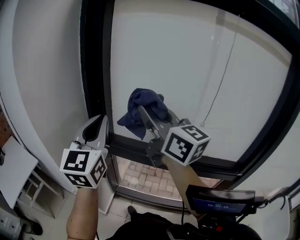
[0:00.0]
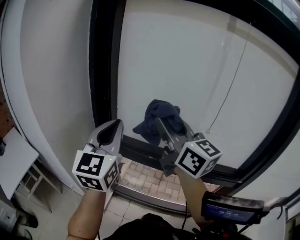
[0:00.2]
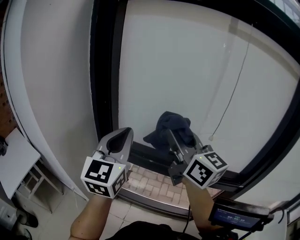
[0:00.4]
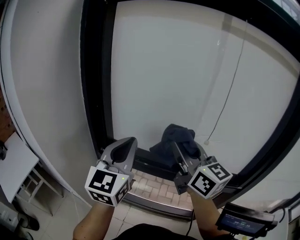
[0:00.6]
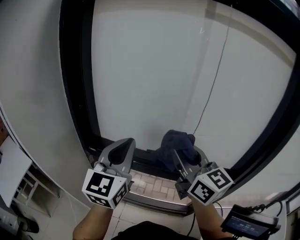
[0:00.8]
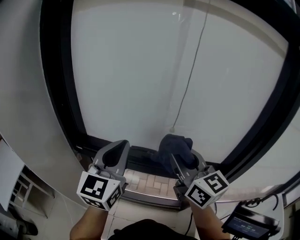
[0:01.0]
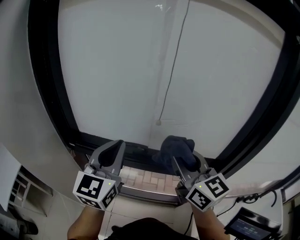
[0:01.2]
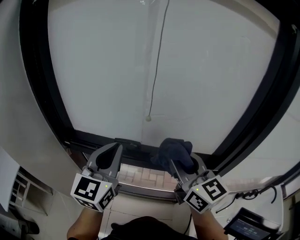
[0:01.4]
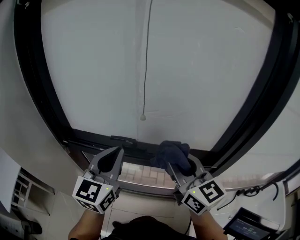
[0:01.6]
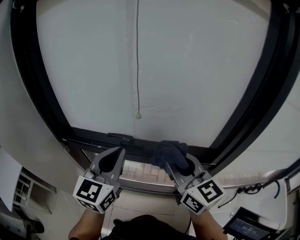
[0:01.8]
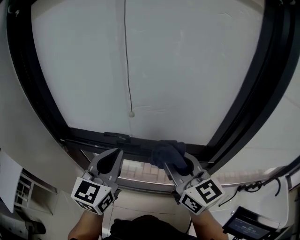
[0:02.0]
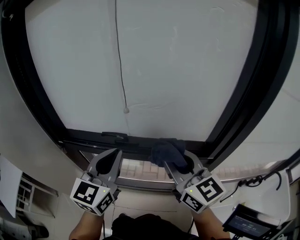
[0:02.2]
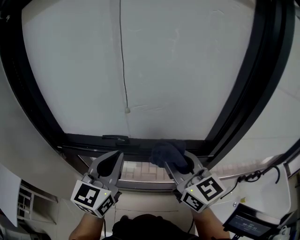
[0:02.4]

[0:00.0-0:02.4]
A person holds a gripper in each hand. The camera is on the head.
0:00.0 to 0:01.2: The left gripper shifts approximately 25 cm to the right. The right gripper shifts roughly 30 cm to the right and downward, and rotates roughly 20 degrees.
0:01.2 to 0:02.4: The two grippers go roughly 5 cm to the right.

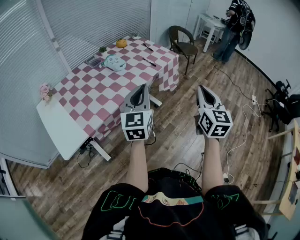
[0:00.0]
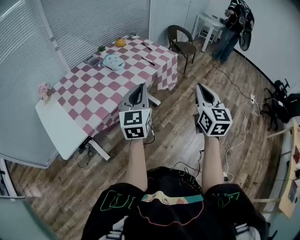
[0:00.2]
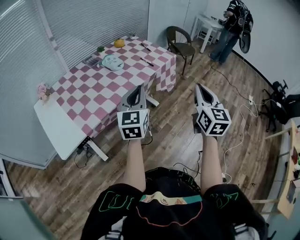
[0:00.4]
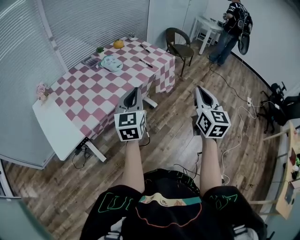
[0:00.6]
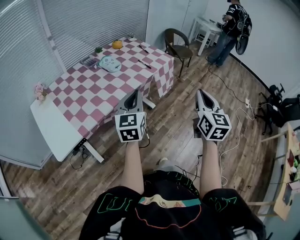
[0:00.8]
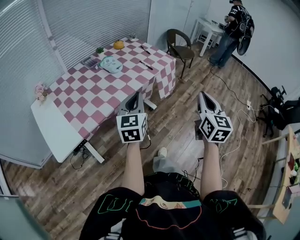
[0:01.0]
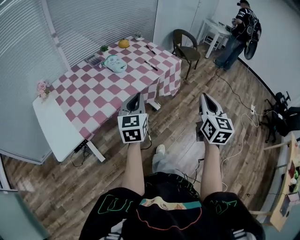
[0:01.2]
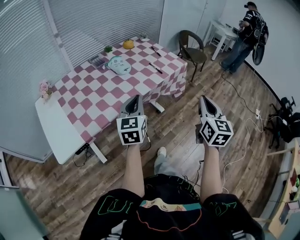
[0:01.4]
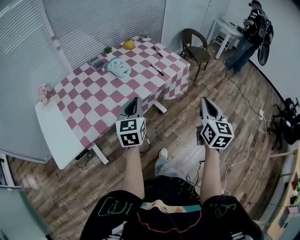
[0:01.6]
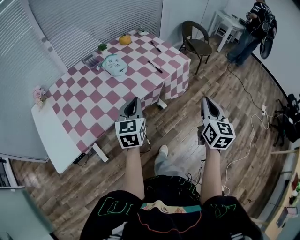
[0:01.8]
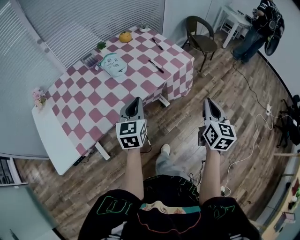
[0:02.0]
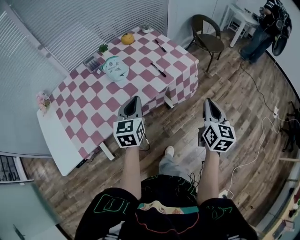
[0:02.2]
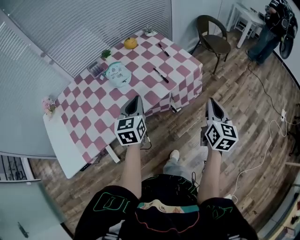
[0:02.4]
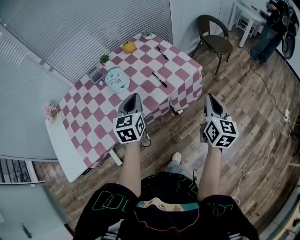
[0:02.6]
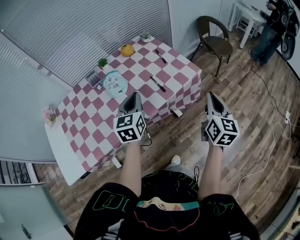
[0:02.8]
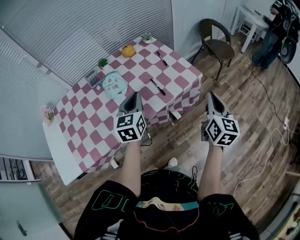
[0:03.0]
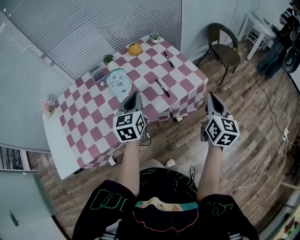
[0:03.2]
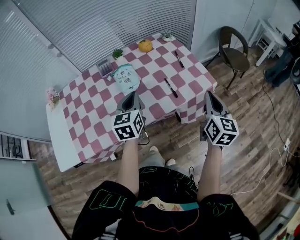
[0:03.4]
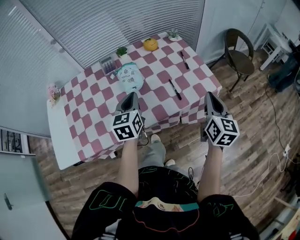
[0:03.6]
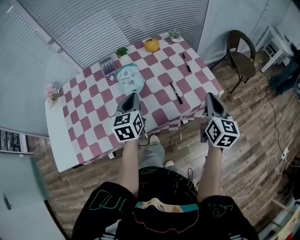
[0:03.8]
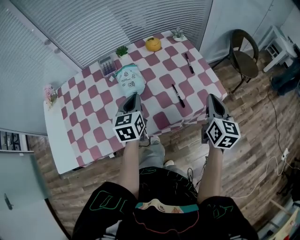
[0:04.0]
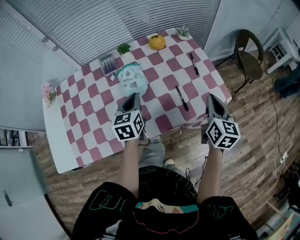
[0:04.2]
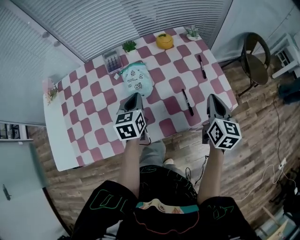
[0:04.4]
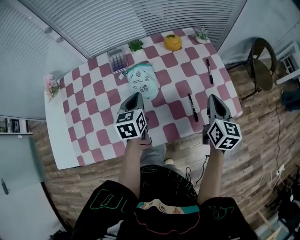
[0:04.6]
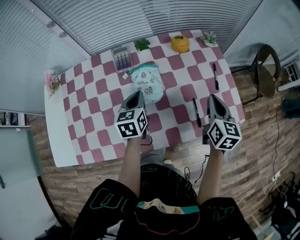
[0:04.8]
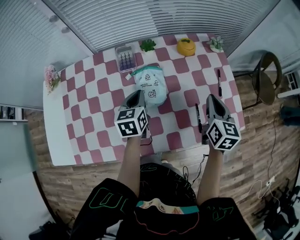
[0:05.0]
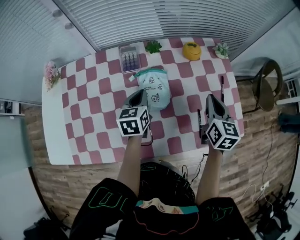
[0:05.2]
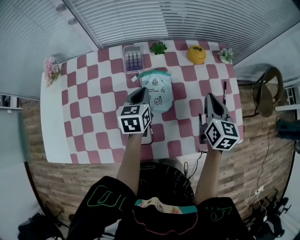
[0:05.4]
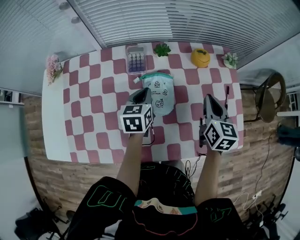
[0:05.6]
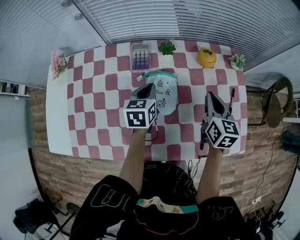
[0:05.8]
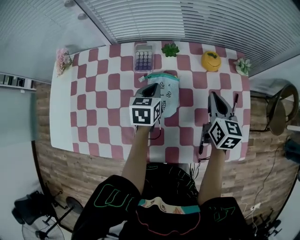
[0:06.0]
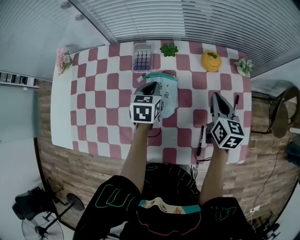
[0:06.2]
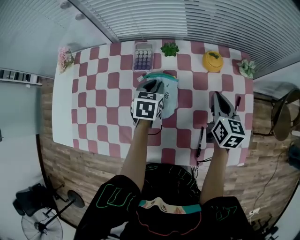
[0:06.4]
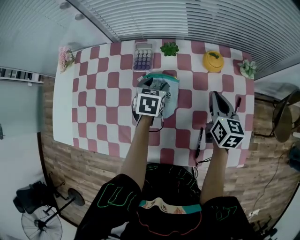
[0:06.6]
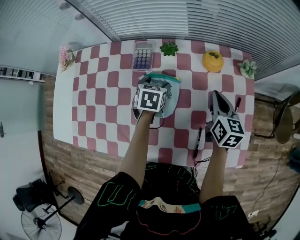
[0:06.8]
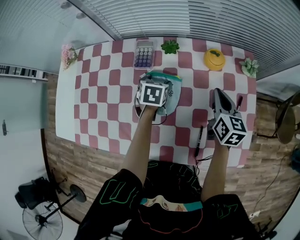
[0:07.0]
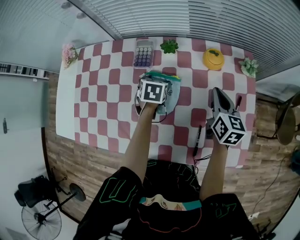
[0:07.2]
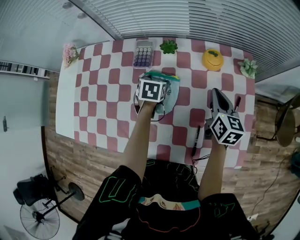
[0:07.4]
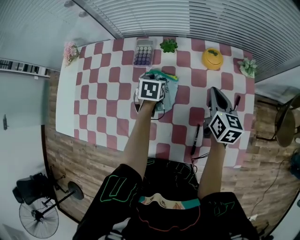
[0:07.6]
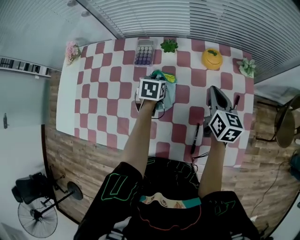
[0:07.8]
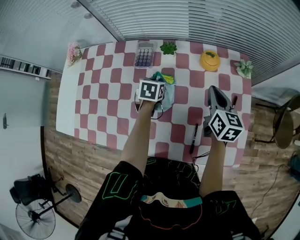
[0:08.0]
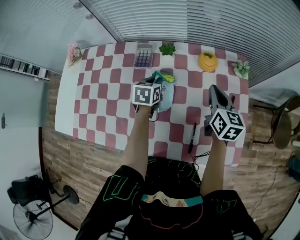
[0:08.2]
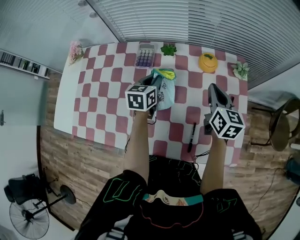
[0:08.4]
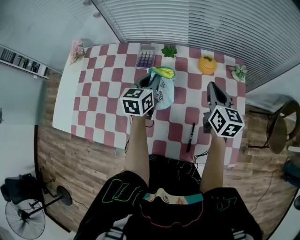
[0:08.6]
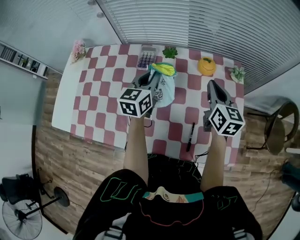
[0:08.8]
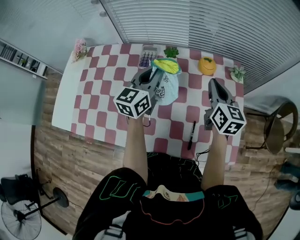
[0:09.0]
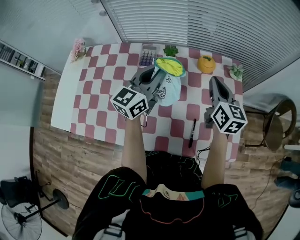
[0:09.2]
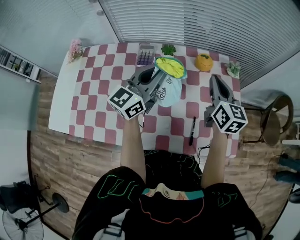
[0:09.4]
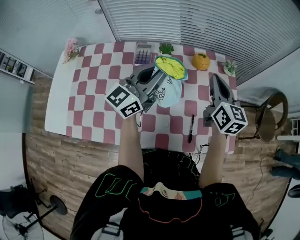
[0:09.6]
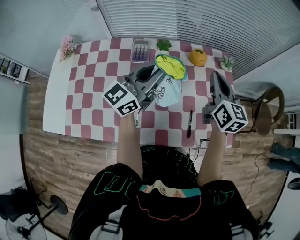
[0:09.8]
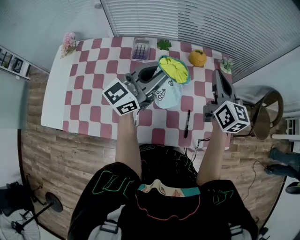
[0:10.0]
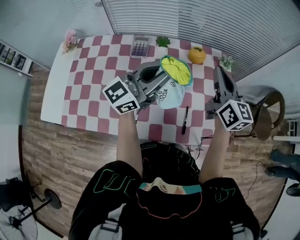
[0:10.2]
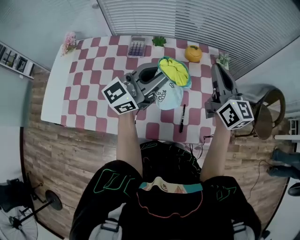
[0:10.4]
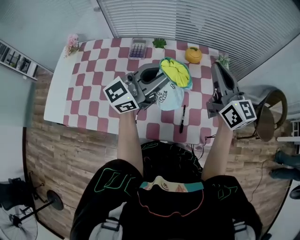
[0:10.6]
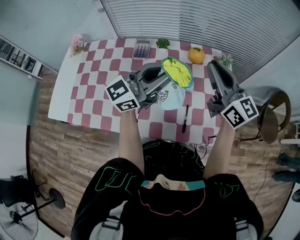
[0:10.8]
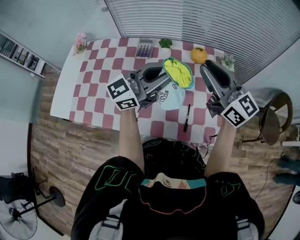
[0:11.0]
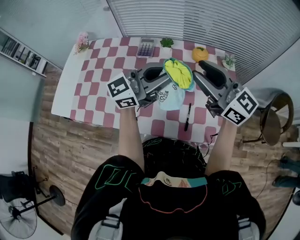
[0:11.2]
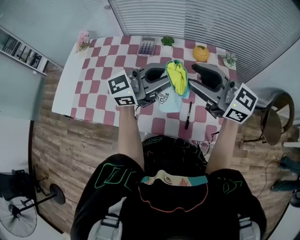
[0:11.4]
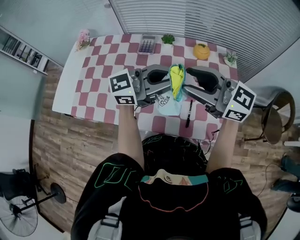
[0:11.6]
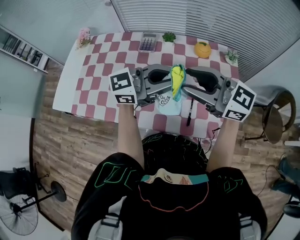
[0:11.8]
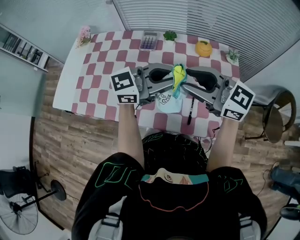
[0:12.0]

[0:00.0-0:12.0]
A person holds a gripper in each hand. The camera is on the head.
0:00.0 to 0:01.6: Both grippers move forward and downward, approximately 15 cm.
0:01.6 to 0:03.0: Both grippers move forward, roughly 25 cm.
0:03.0 to 0:04.4: The right gripper travels forward and to the left by roughly 25 cm, and rotates approximately 20 degrees. Meanwhile the left gripper is displaced to the left, forward and downward by some 20 cm, and rotates roughly 20 degrees.
0:04.4 to 0:06.0: The left gripper heads forward, covering about 15 cm. Meanwhile the right gripper moves forward and to the left, roughly 25 cm, and swivels roughly 30 degrees.
0:06.0 to 0:07.6: The left gripper is displaced downward by some 5 cm, and opens; the right gripper moves some 5 cm.
0:07.6 to 0:09.0: The left gripper is displaced upward by approximately 20 cm, angles its fingers upward, by about 50 degrees, and closes its fingers. Meanwhile the right gripper is displaced upward by roughly 10 cm.
0:09.0 to 0:10.4: The right gripper goes roughly 10 cm upward and backward, while the left gripper heads backward, to the right and upward, covering some 15 cm, and changes its angle by some 40 degrees.
0:10.4 to 0:12.0: The right gripper changes place by about 15 cm, swivels some 50 degrees, and opens its fingers, while the left gripper moves some 5 cm.

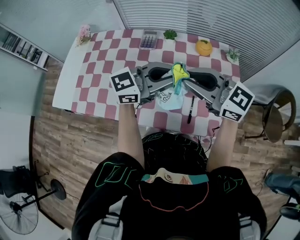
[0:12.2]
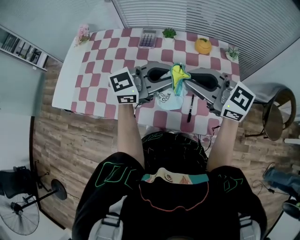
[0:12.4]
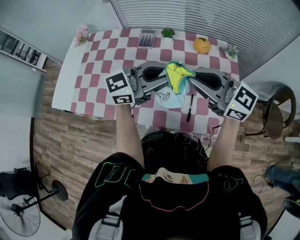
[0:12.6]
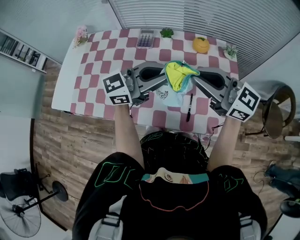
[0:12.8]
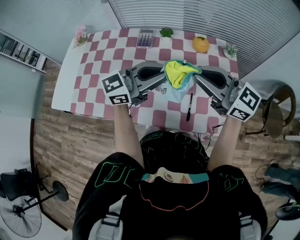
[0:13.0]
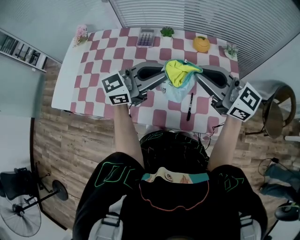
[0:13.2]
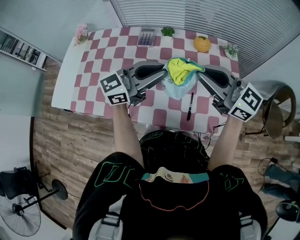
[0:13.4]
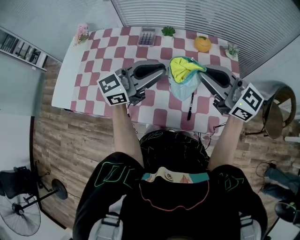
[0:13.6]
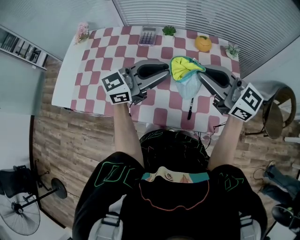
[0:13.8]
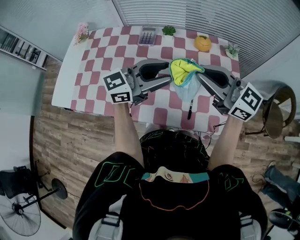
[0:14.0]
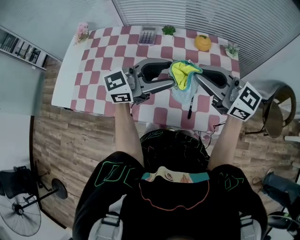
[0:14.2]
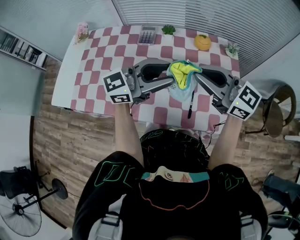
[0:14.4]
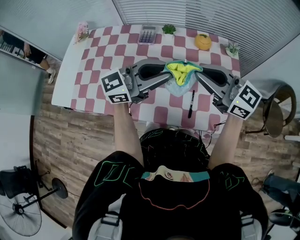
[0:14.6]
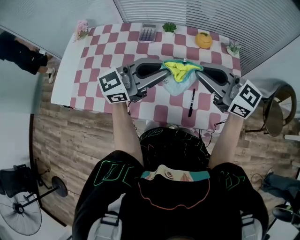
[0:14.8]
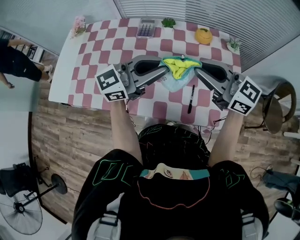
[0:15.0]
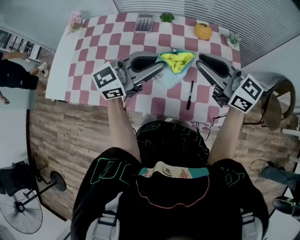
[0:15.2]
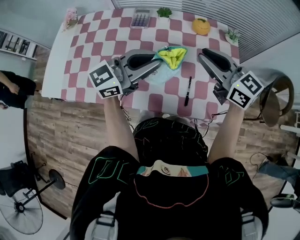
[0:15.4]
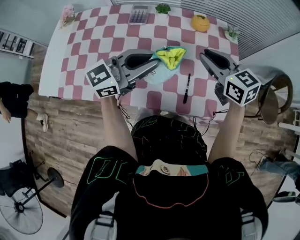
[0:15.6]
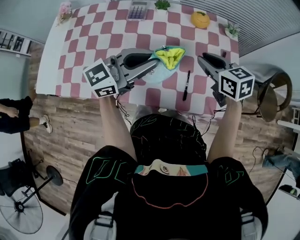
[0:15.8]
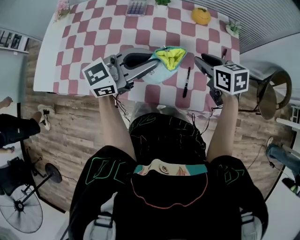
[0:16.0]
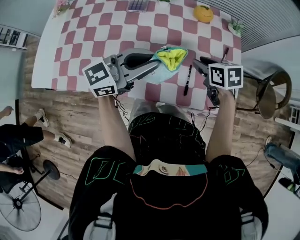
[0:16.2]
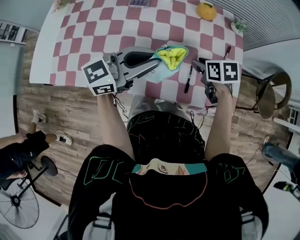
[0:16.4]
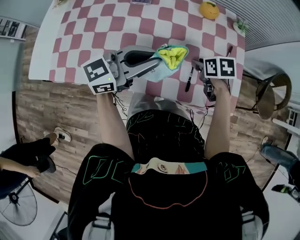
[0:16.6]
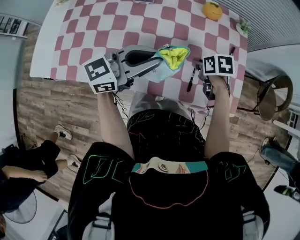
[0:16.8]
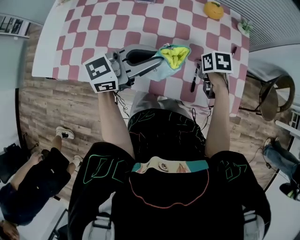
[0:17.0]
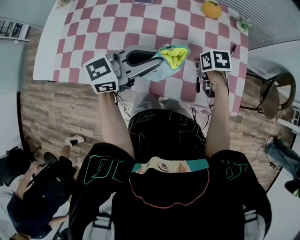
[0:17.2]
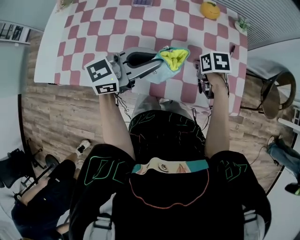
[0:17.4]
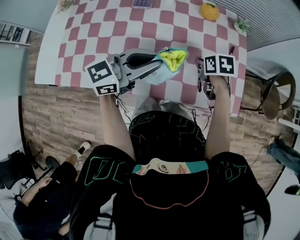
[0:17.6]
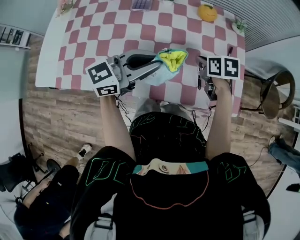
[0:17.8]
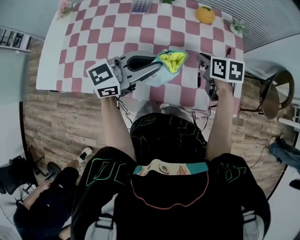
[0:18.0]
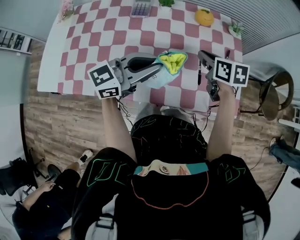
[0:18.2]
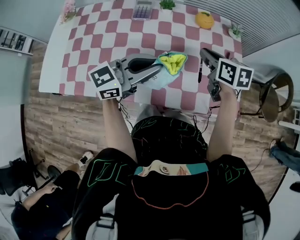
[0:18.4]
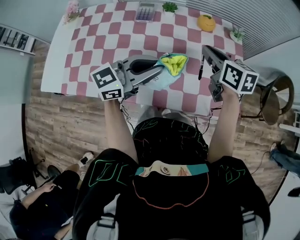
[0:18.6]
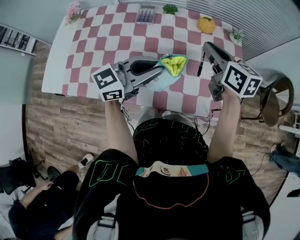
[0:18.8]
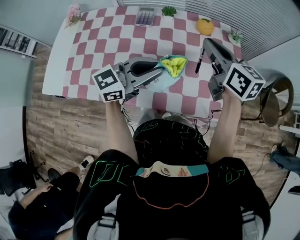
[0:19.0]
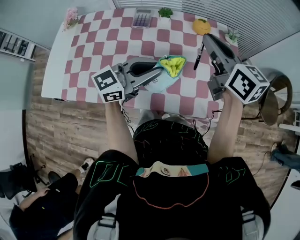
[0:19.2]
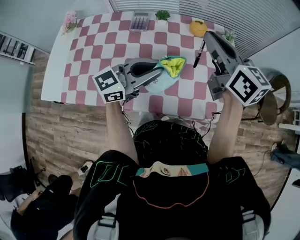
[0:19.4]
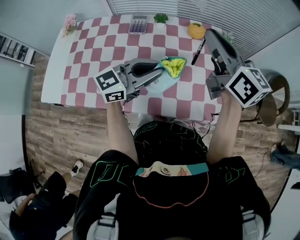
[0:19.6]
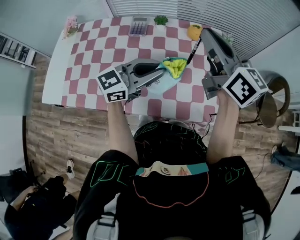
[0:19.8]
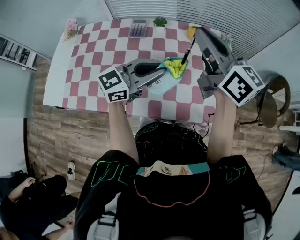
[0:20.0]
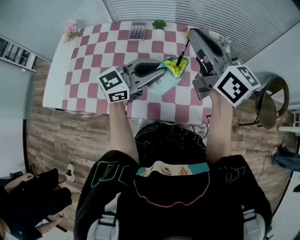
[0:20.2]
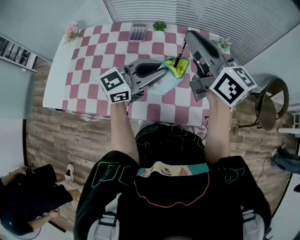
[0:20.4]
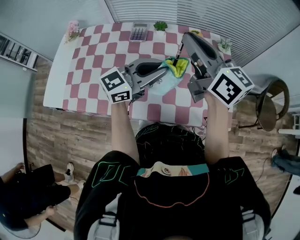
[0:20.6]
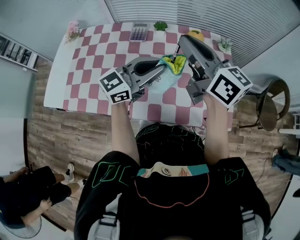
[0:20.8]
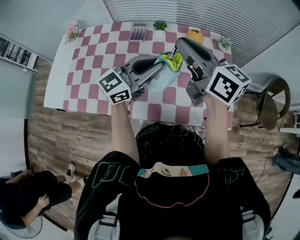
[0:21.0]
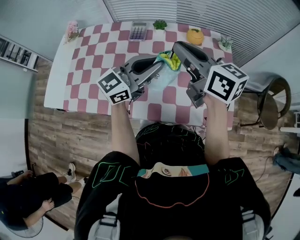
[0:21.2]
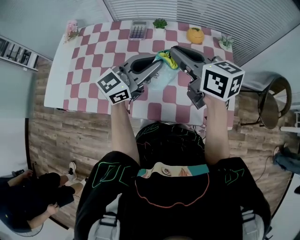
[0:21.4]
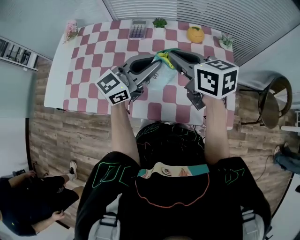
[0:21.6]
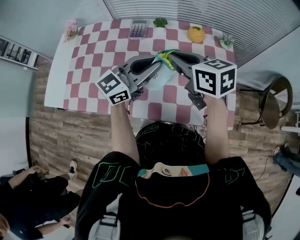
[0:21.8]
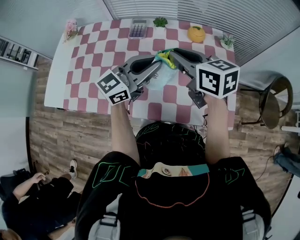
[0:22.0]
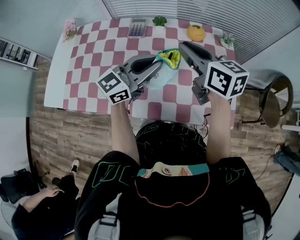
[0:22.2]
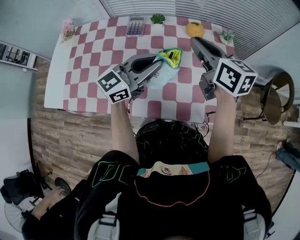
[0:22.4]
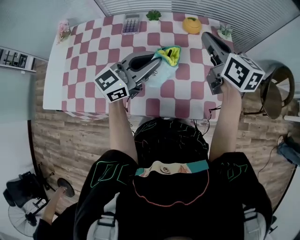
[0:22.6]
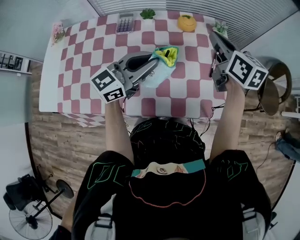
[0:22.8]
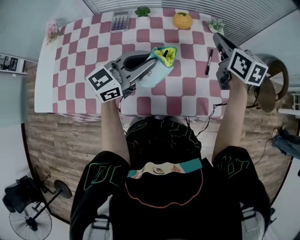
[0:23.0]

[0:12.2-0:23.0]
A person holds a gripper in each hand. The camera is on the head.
0:12.2 to 0:13.8: The grippers make only small movements.
0:13.8 to 0:15.2: The left gripper opens and closes again.
0:15.2 to 0:16.8: The right gripper goes roughly 30 cm downward, and angles its fingers downward, by about 60 degrees. Meanwhile the left gripper heads downward, covering approximately 10 cm.
0:16.8 to 0:18.4: The right gripper shifts approximately 15 cm upward, turns by some 30 degrees, and closes.
0:18.4 to 0:20.0: The right gripper heads upward, covering roughly 20 cm, and points its fingers some 40 degrees further upward.
0:20.0 to 0:21.4: The right gripper heads downward and to the left, covering some 10 cm, and changes its angle by some 20 degrees.
0:21.4 to 0:23.0: The right gripper is displaced to the right and forward by about 20 cm, and swivels roughly 30 degrees.
